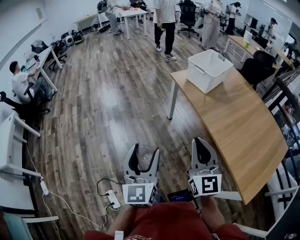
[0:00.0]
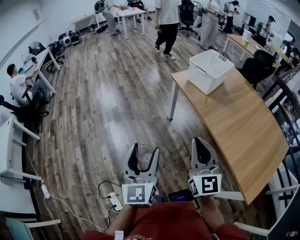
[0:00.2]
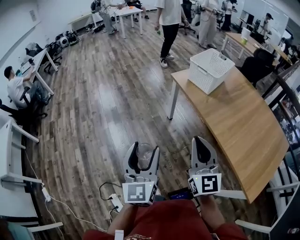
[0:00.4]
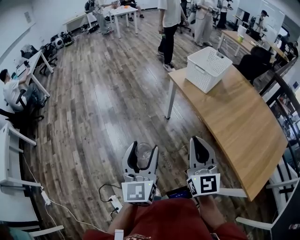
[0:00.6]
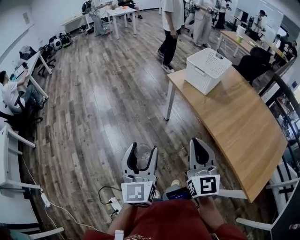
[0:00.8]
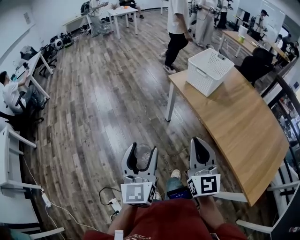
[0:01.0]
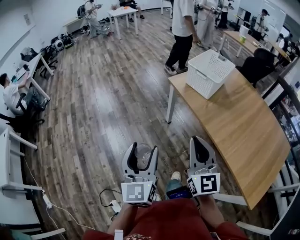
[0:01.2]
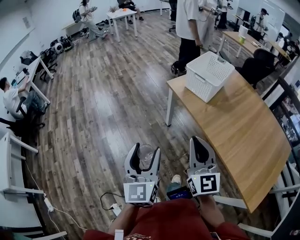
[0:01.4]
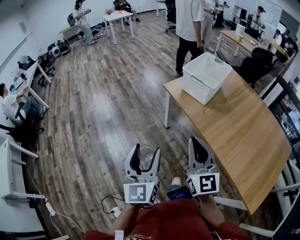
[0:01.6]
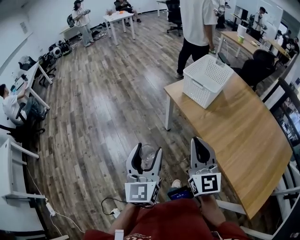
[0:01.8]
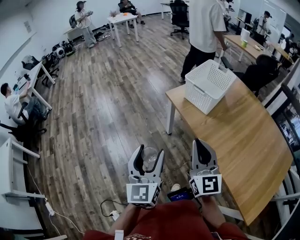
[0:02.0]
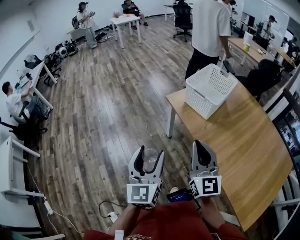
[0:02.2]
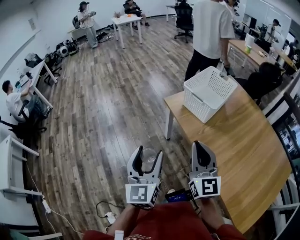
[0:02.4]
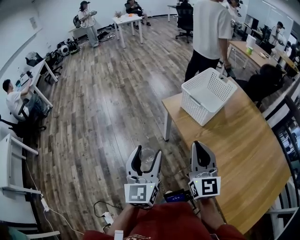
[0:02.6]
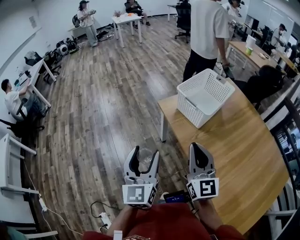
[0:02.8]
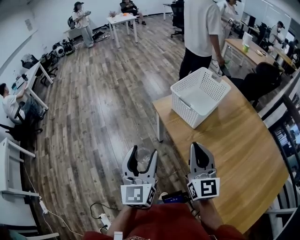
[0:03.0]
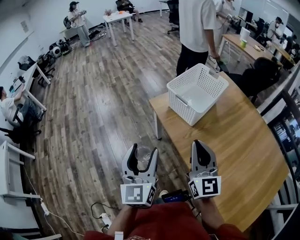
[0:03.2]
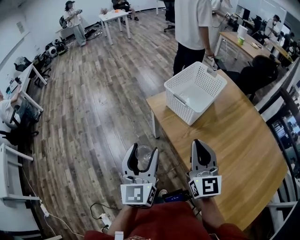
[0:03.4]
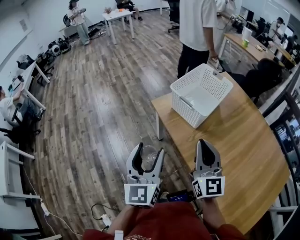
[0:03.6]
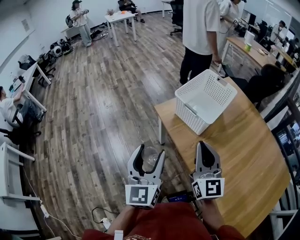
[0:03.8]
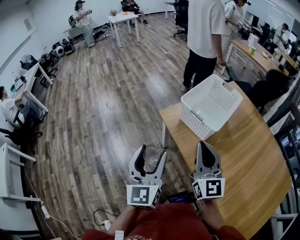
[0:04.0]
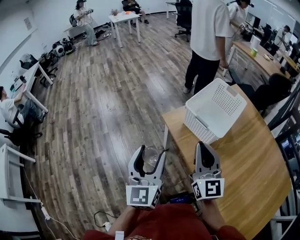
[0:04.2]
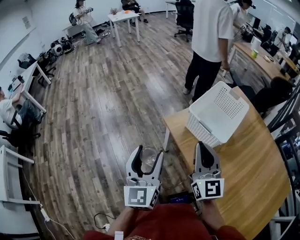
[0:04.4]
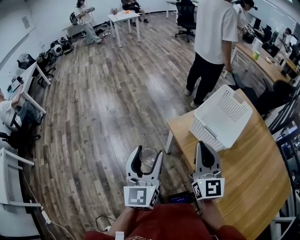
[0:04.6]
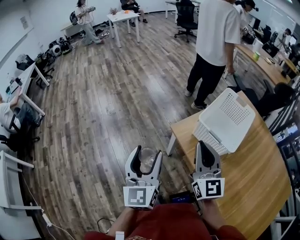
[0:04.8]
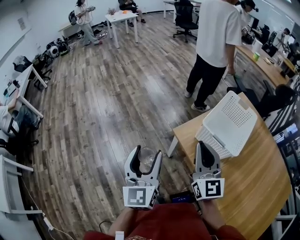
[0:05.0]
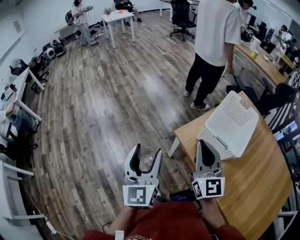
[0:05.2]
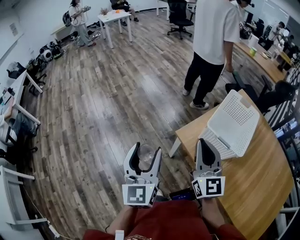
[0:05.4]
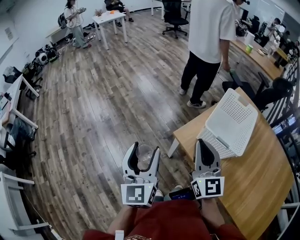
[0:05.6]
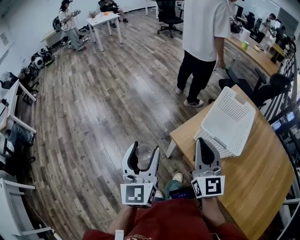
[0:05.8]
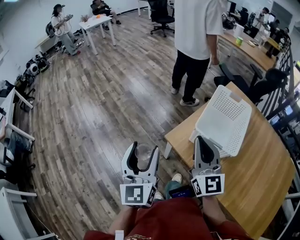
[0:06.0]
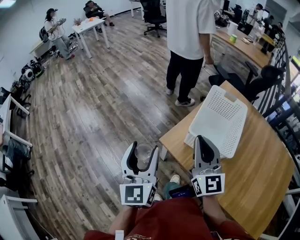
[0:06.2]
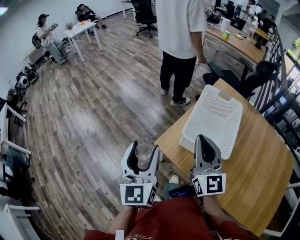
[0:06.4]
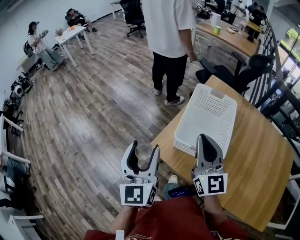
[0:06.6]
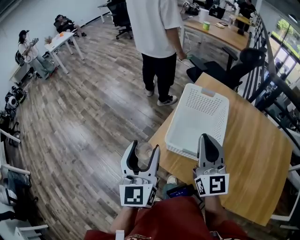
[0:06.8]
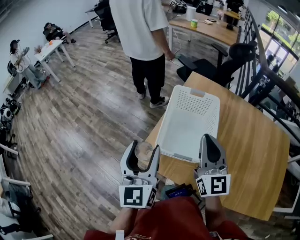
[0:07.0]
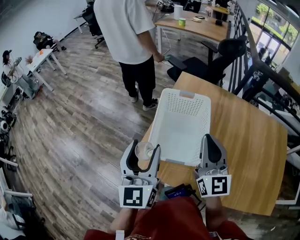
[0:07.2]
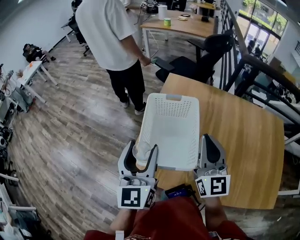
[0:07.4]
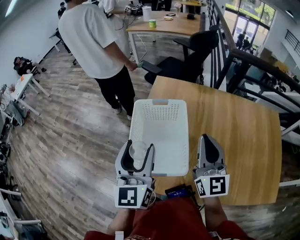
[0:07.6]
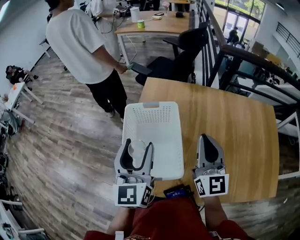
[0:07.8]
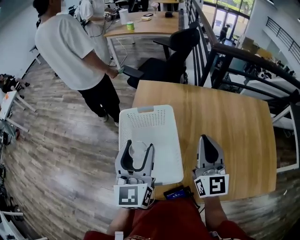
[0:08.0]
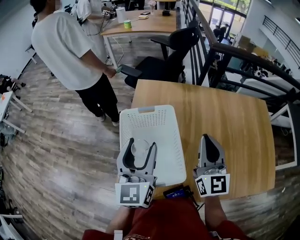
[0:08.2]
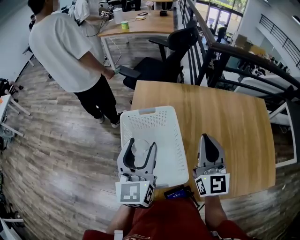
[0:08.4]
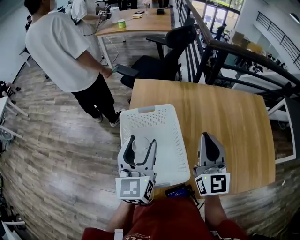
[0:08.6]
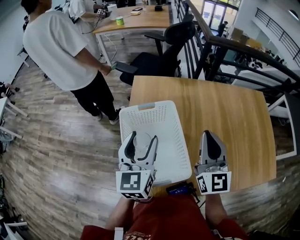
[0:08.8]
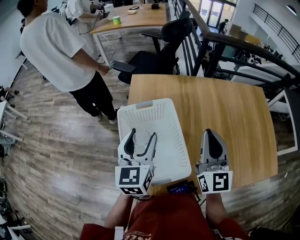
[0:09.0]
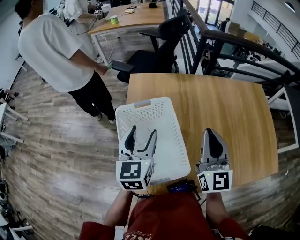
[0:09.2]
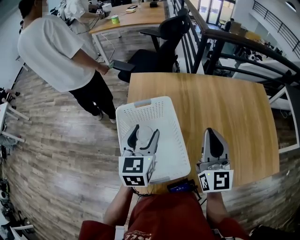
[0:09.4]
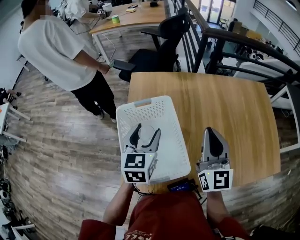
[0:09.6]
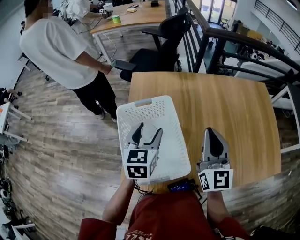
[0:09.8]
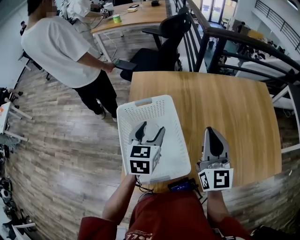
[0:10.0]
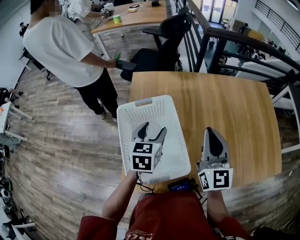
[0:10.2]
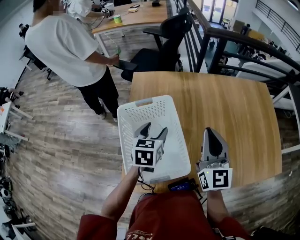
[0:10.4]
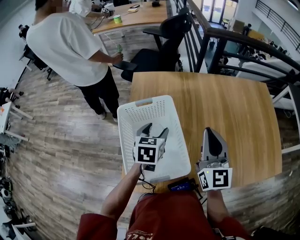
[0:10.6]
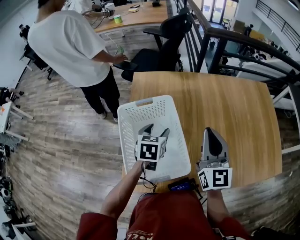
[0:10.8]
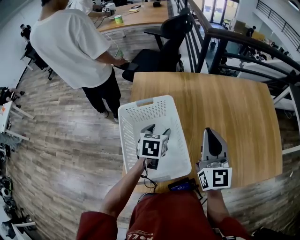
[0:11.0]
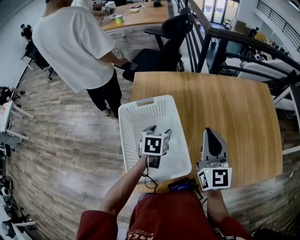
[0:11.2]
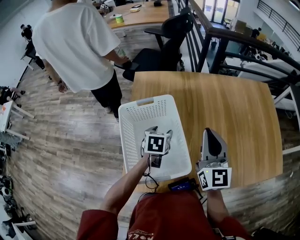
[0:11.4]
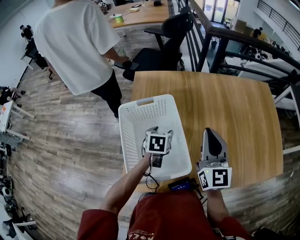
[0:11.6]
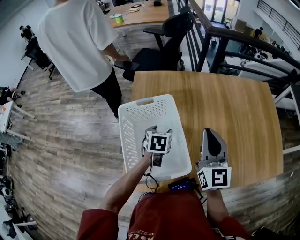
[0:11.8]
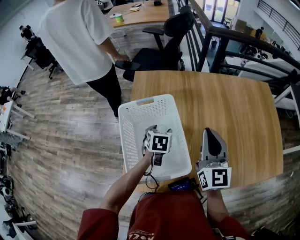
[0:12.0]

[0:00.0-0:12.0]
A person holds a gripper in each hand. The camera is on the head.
0:00.0 to 0:01.6: The two grippers go roughly 15 cm forward.
0:01.6 to 0:03.0: The left gripper heads forward and to the right, covering about 15 cm; the right gripper is displaced to the right and forward by roughly 20 cm.
0:03.0 to 0:04.4: Both grippers travel together forward, approximately 15 cm.
0:04.4 to 0:06.0: Both grippers move forward, about 15 cm.
0:06.0 to 0:07.6: The left gripper ends up roughly 35 cm from where it was, and swivels about 30 degrees. The right gripper shifts by roughly 30 cm, and turns by approximately 40 degrees.
0:07.6 to 0:09.0: The left gripper goes roughly 10 cm forward, and changes its angle by approximately 20 degrees.
0:09.0 to 0:10.4: The left gripper heads downward, covering roughly 10 cm, and turns by approximately 30 degrees.
0:10.4 to 0:12.0: The left gripper goes approximately 10 cm downward.

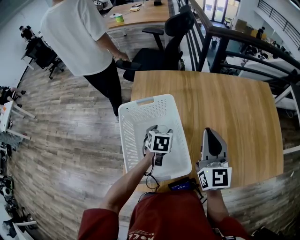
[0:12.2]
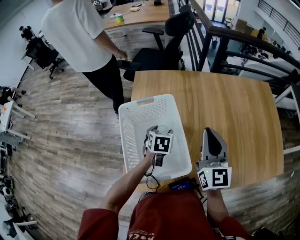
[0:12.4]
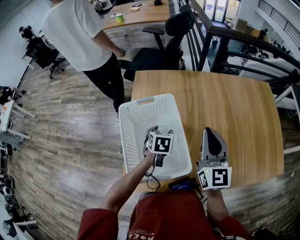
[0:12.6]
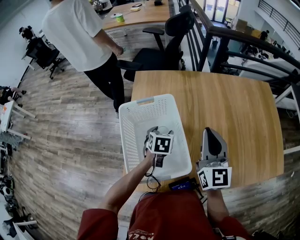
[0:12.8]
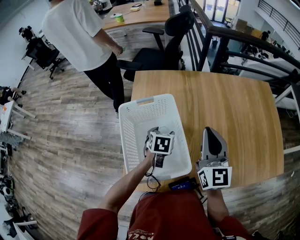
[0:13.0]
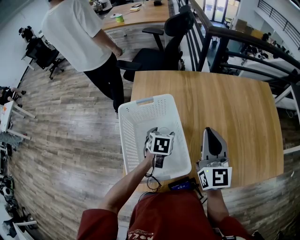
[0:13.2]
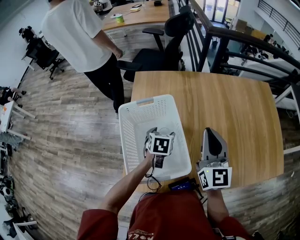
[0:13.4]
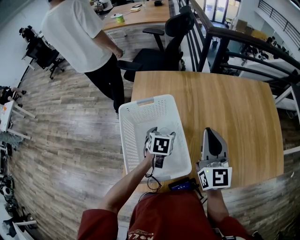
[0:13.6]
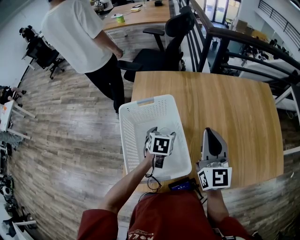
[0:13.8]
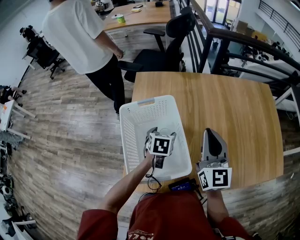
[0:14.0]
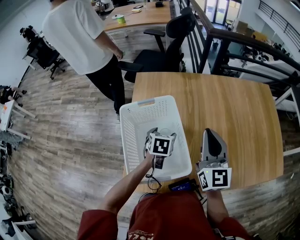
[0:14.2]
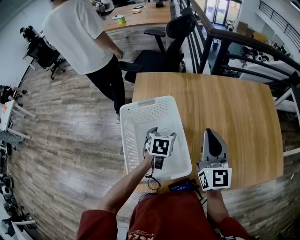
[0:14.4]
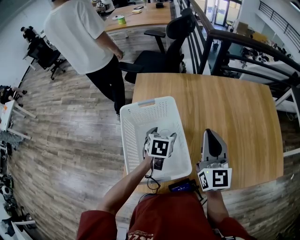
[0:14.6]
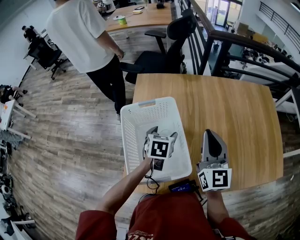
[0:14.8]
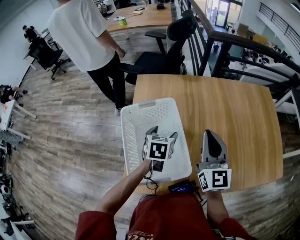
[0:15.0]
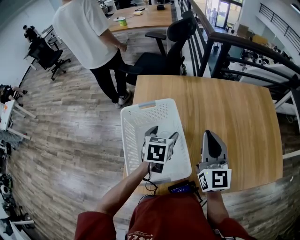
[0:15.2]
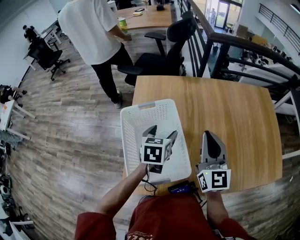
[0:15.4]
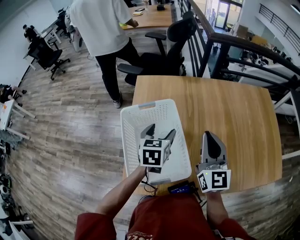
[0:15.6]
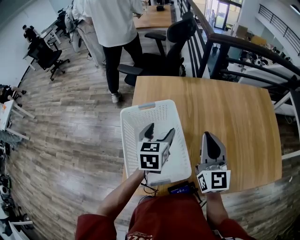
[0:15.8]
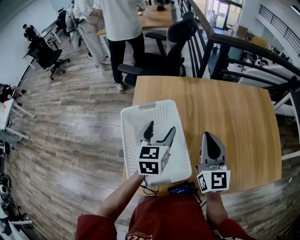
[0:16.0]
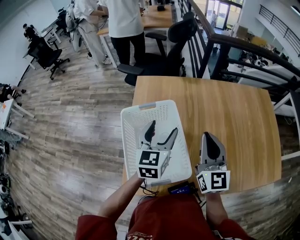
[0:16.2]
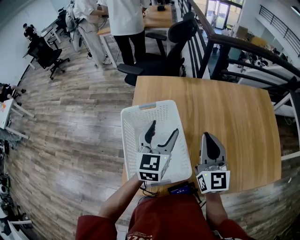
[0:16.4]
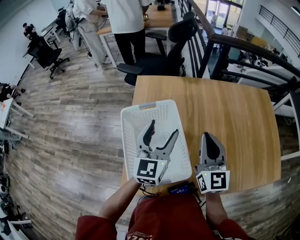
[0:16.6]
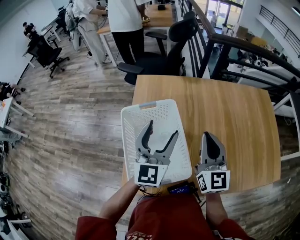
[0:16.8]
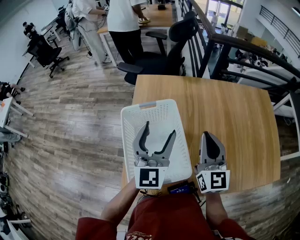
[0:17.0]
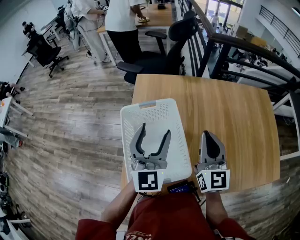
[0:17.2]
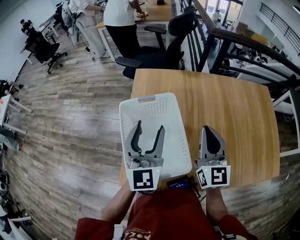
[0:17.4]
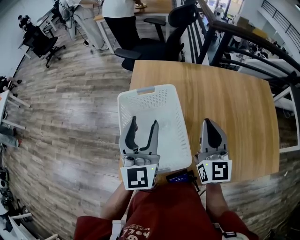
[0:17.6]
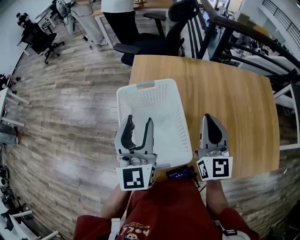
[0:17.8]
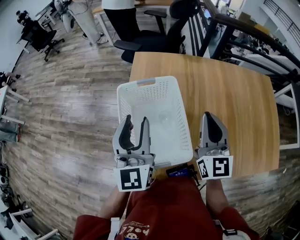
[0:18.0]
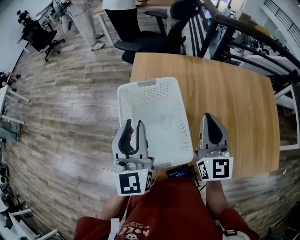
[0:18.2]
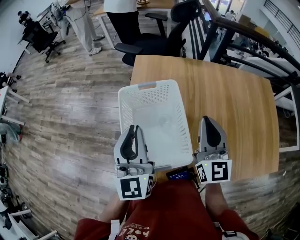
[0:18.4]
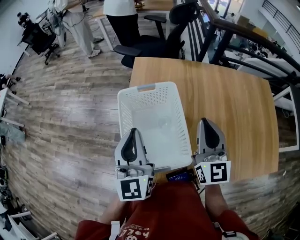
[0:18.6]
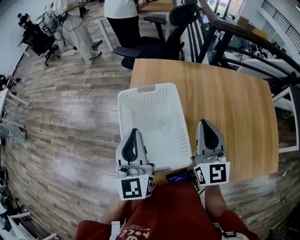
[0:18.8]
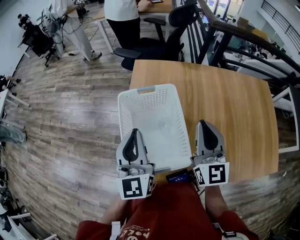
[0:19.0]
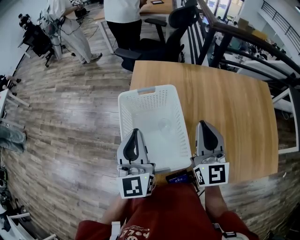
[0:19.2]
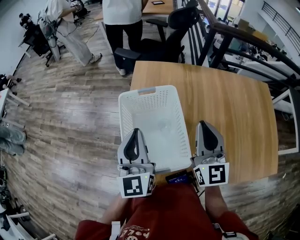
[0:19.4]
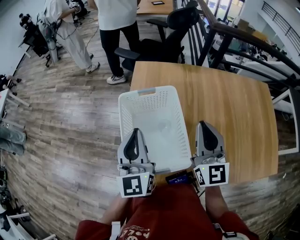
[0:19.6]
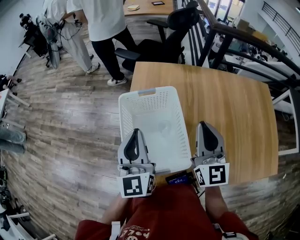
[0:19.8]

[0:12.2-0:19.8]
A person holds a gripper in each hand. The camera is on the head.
0:12.2 to 0:13.8: The grippers stay close to where they were, moving slightly.
0:13.8 to 0:15.2: The left gripper heads upward, covering approximately 10 cm.
0:15.2 to 0:16.8: The left gripper is displaced upward by about 15 cm, and tips its fingers upward by about 40 degrees.
0:16.8 to 0:18.2: The left gripper heads to the left and backward, covering approximately 10 cm, and closes its fingers.
0:18.2 to 0:19.8: The grippers stay close to where they were, moving slightly.

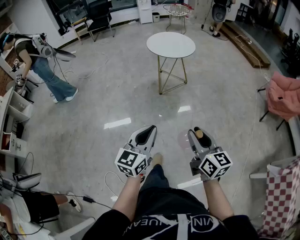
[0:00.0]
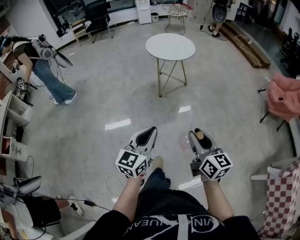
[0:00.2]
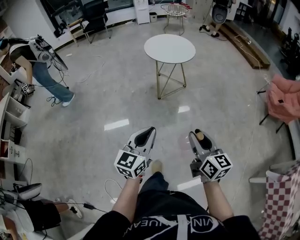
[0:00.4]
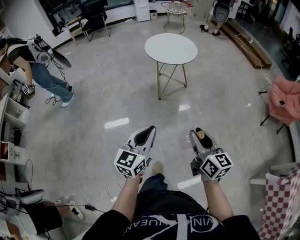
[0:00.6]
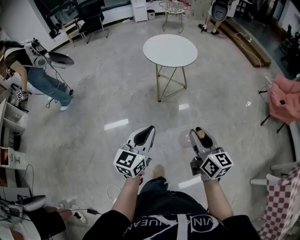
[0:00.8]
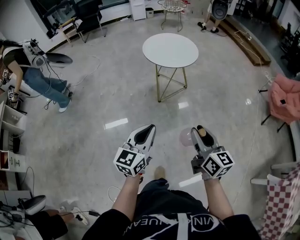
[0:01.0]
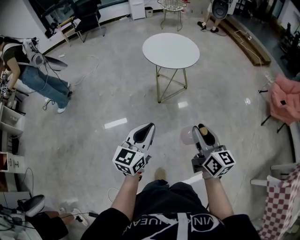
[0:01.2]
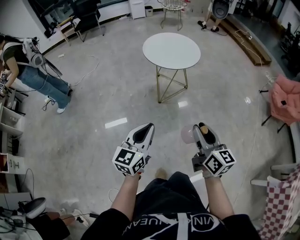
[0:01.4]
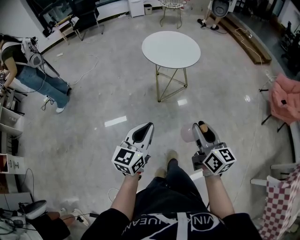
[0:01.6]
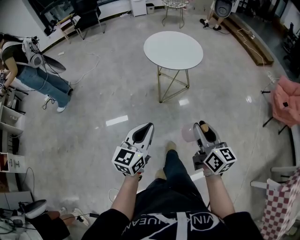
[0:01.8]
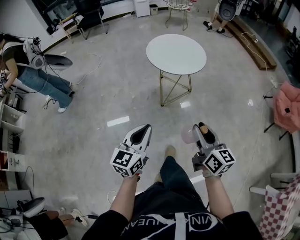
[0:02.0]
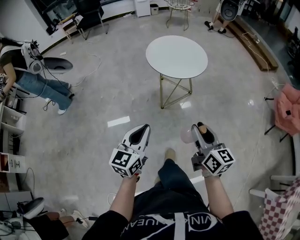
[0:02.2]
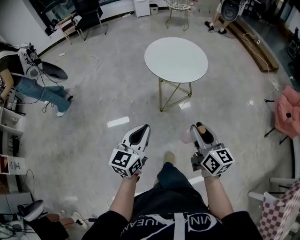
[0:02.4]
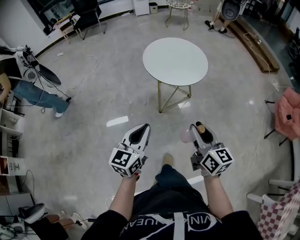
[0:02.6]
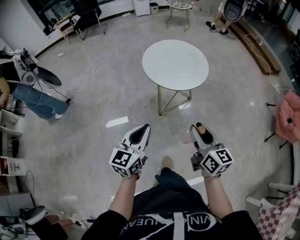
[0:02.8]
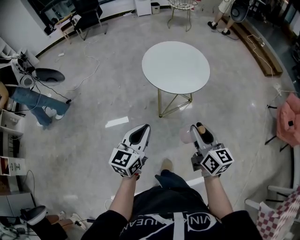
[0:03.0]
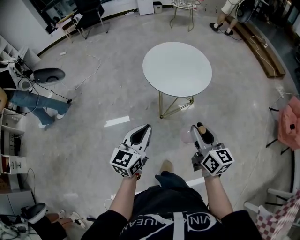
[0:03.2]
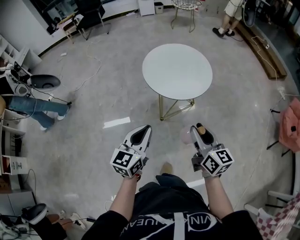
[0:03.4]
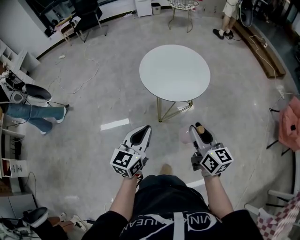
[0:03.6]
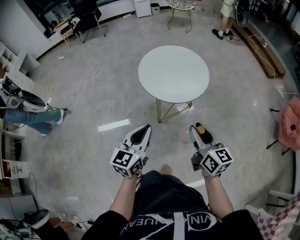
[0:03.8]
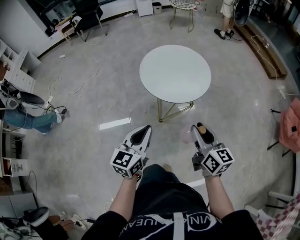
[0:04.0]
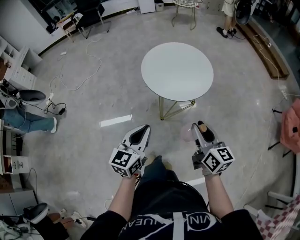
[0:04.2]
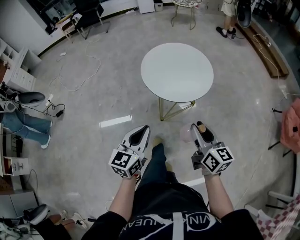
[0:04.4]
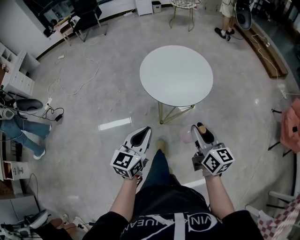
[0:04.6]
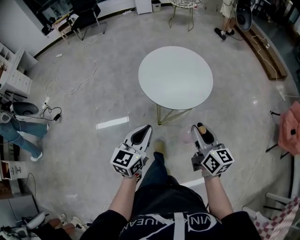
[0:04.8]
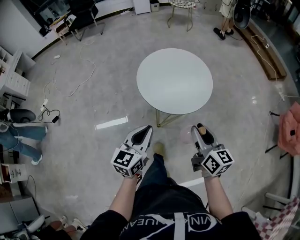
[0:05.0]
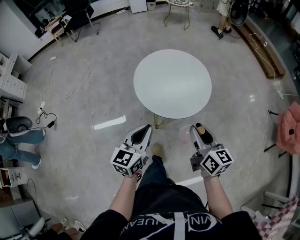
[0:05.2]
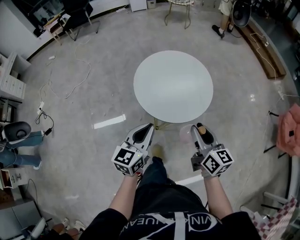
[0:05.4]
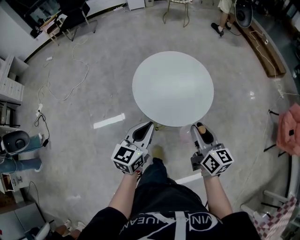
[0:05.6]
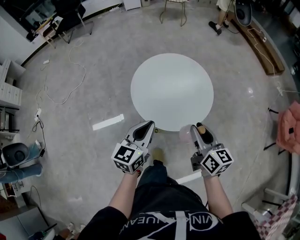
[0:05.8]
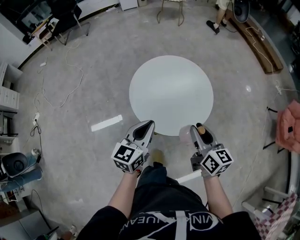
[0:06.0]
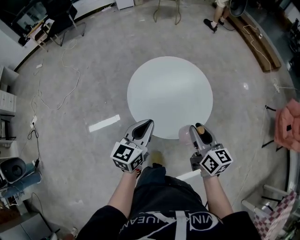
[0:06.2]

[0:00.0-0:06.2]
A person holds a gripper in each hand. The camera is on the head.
0:00.0 to 0:01.6: Both grippers travel together forward, roughly 25 cm.
0:01.6 to 0:03.2: The two grippers go approximately 25 cm forward.
0:03.2 to 0:04.6: The two grippers go some 5 cm forward.
0:04.6 to 0:06.2: Both grippers move forward, some 25 cm.
